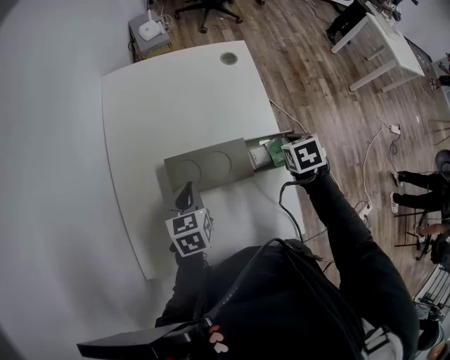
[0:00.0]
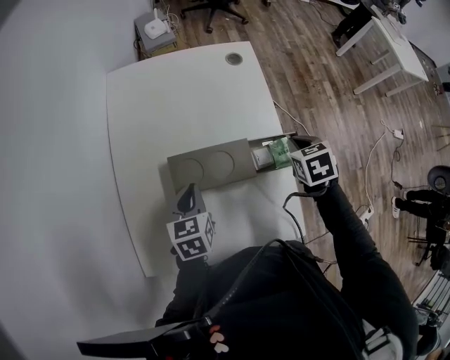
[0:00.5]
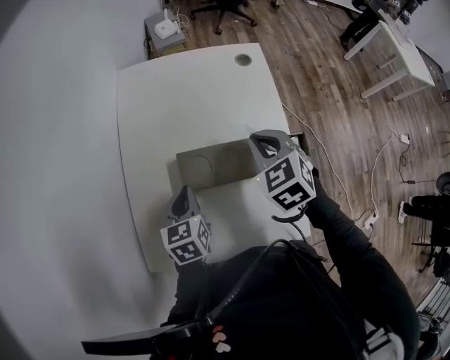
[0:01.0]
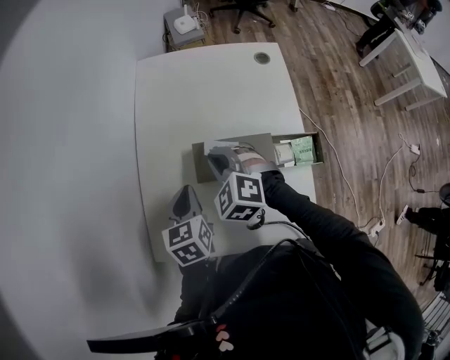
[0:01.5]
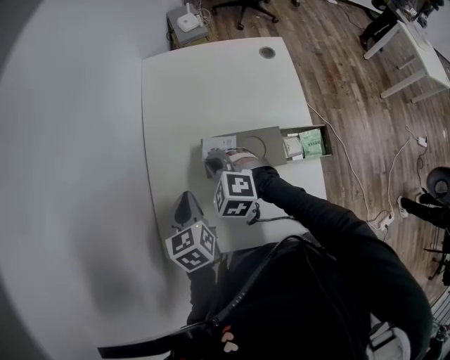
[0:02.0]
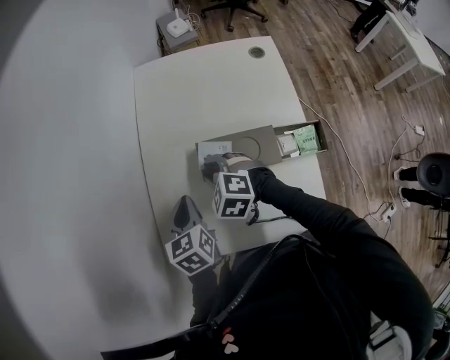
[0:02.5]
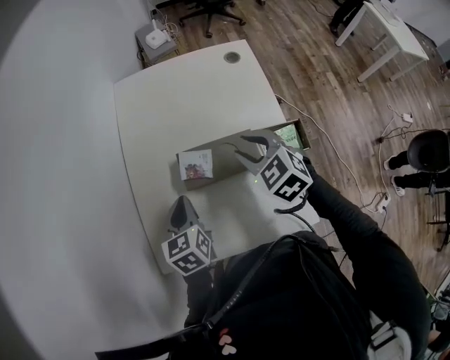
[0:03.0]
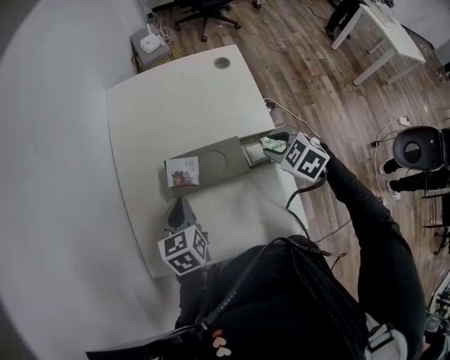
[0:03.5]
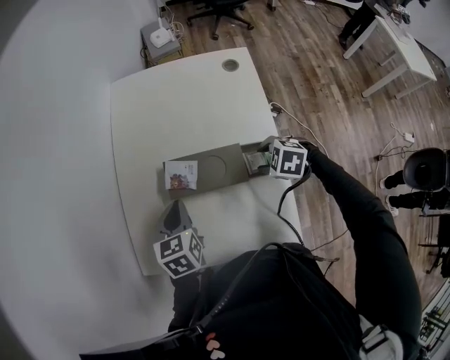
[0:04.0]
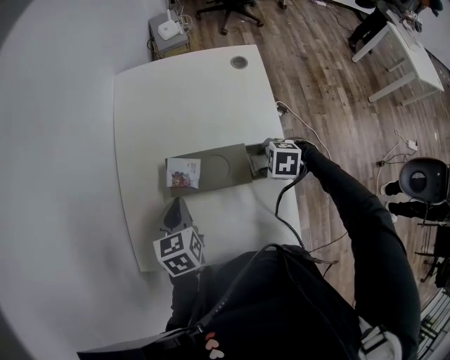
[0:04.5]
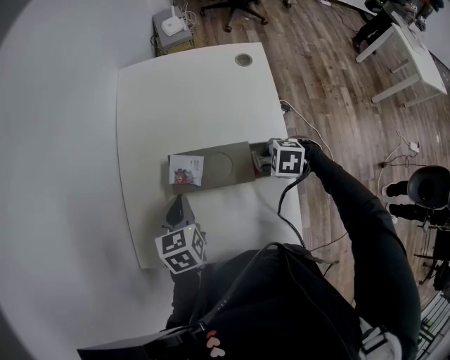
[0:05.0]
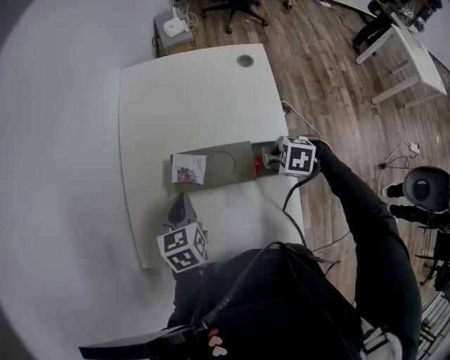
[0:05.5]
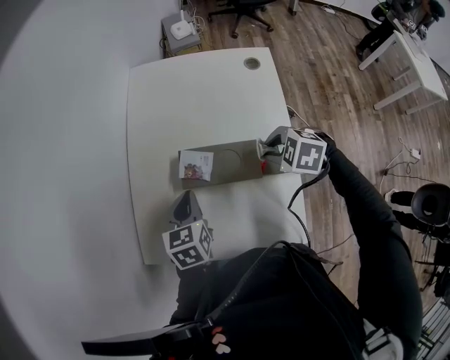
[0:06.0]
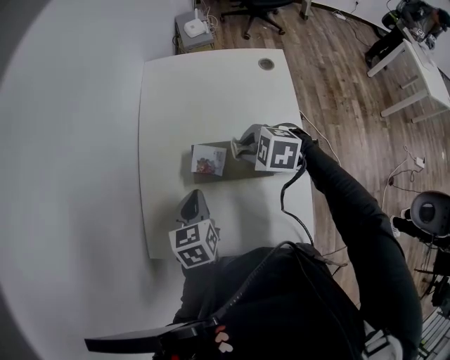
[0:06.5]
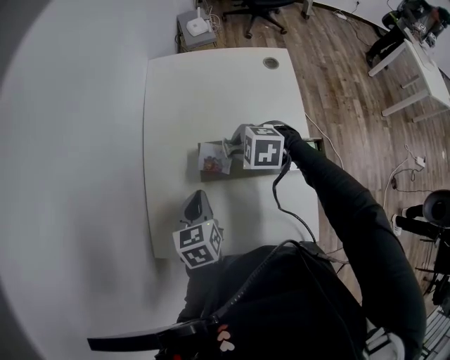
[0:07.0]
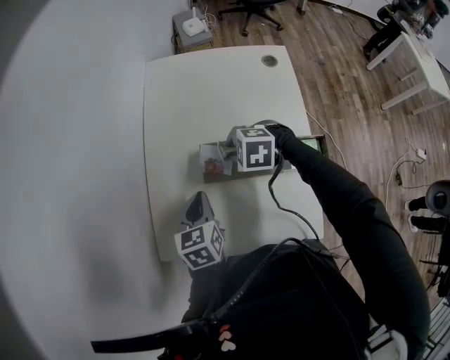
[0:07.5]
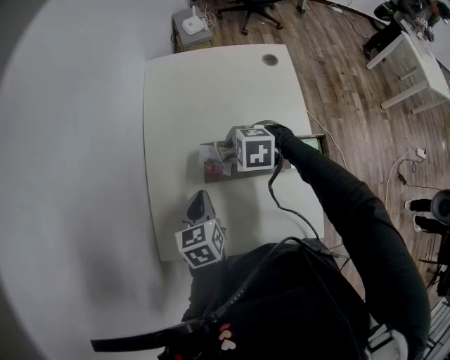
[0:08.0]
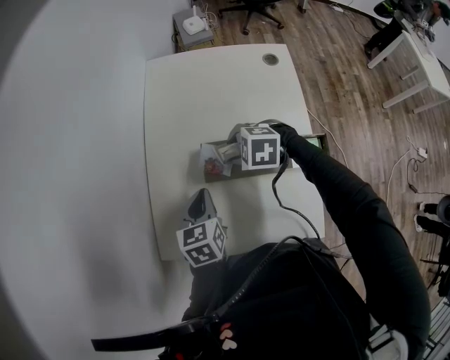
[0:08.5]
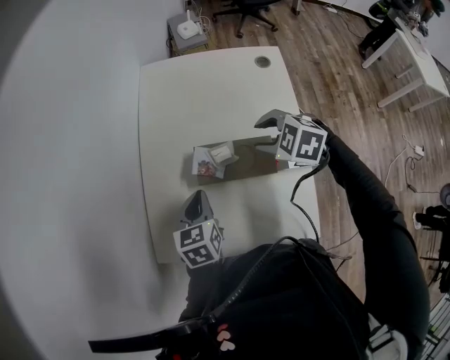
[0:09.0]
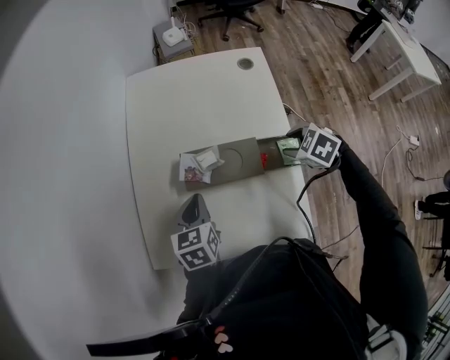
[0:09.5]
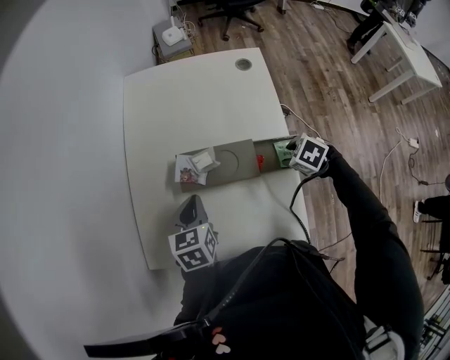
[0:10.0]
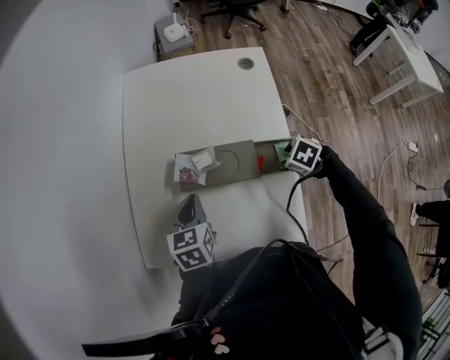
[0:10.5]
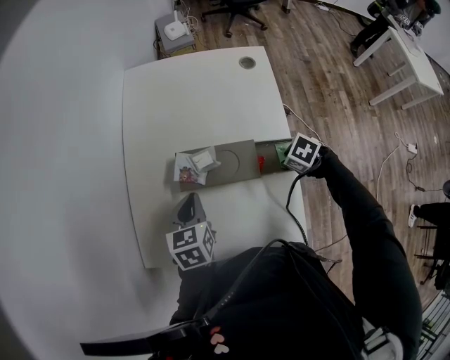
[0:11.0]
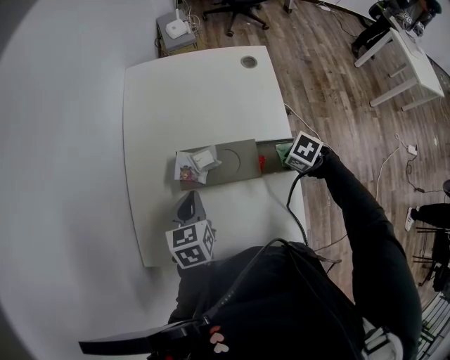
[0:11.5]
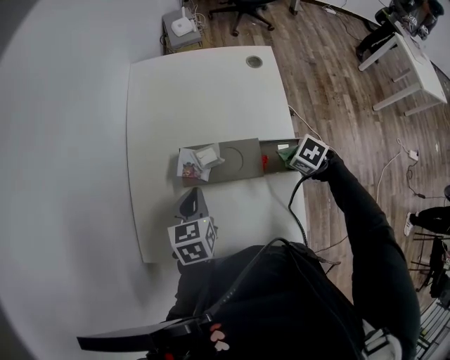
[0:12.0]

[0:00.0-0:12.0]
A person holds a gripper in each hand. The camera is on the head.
0:00.0 to 0:02.0: The right gripper reaches approximately 10 cm upward, then returns, and twists roughly 60 degrees counterclockwise, seen from behind; the left gripper changes place by about 15 cm.
0:02.0 to 0:04.0: The right gripper moves to the right, roughly 25 cm, rotates about 30 degrees, and opens; the left gripper shifts some 10 cm to the right.
0:04.0 to 0:06.0: The right gripper travels upward by about 5 cm, and closes its fingers.
0:06.0 to 0:08.0: The right gripper goes roughly 15 cm to the left and forward.
0:08.0 to 0:10.0: The right gripper shifts by approximately 25 cm, and turns by roughly 40 degrees.
0:10.0 to 0:12.0: The right gripper closes up.

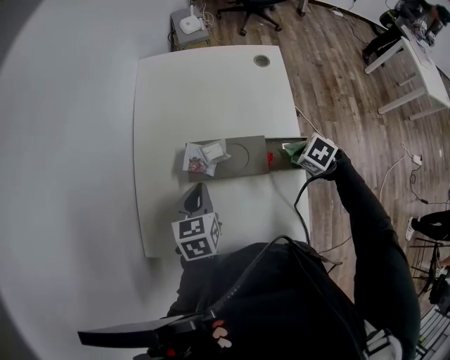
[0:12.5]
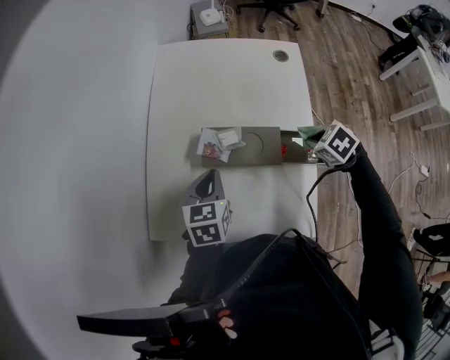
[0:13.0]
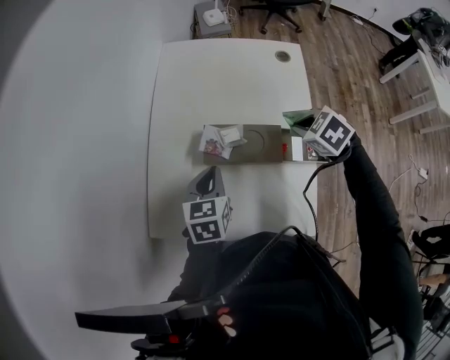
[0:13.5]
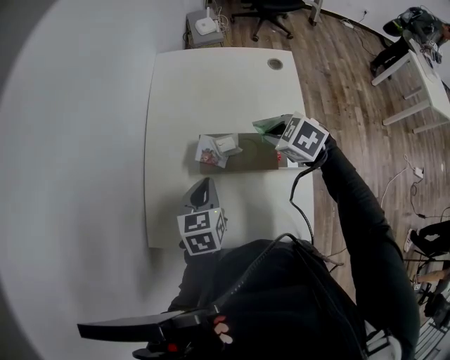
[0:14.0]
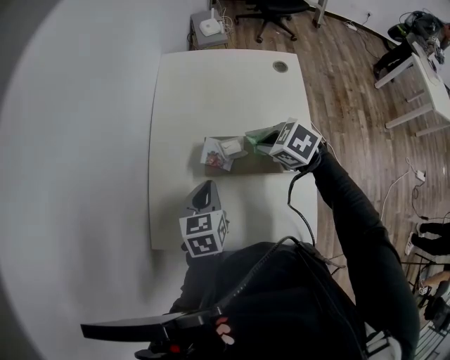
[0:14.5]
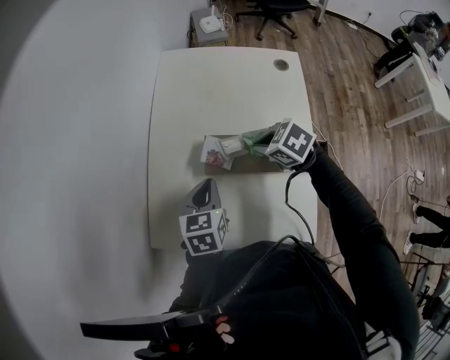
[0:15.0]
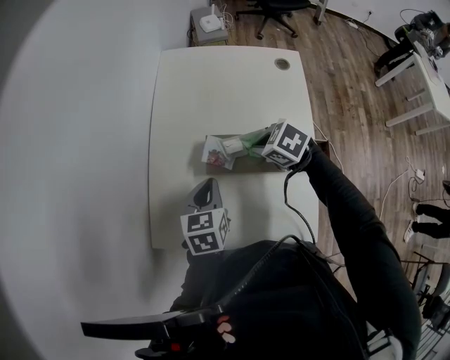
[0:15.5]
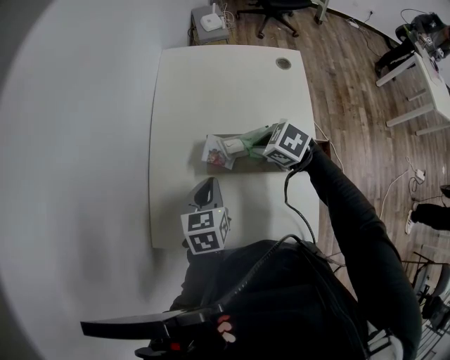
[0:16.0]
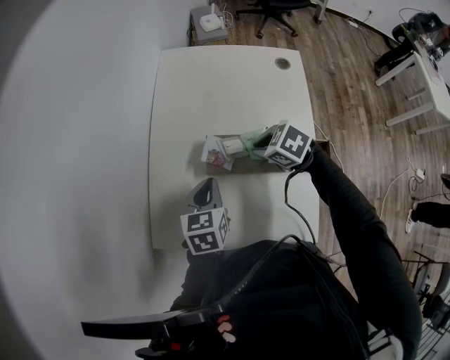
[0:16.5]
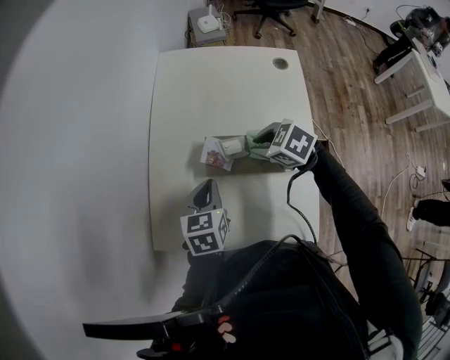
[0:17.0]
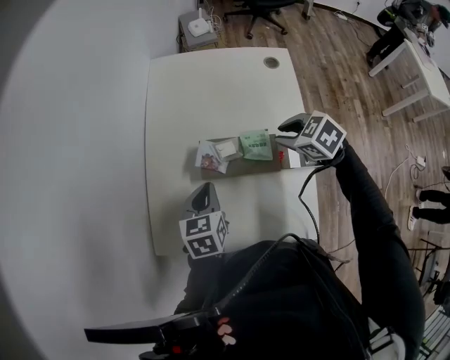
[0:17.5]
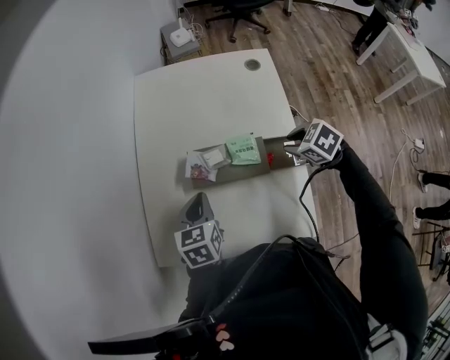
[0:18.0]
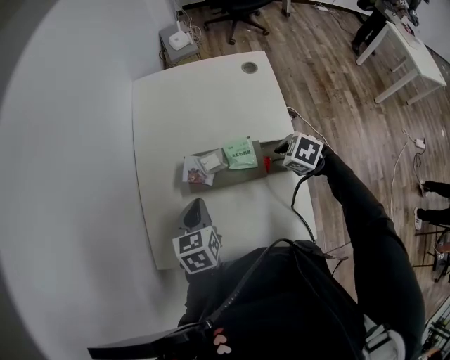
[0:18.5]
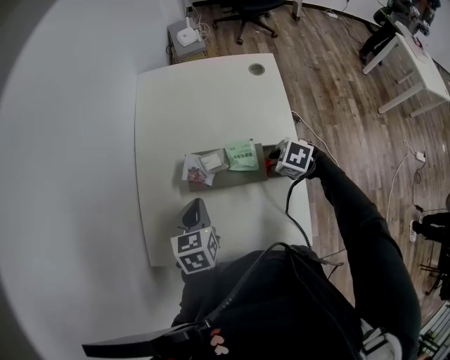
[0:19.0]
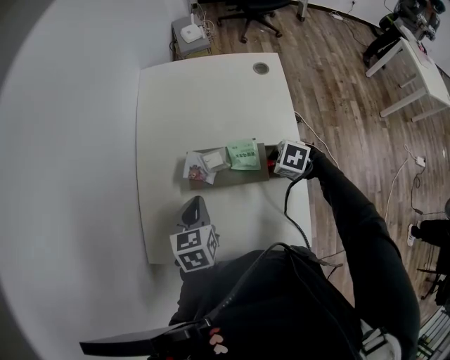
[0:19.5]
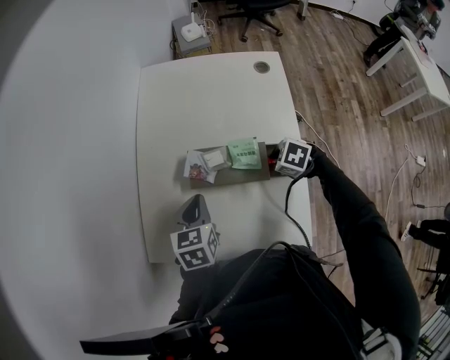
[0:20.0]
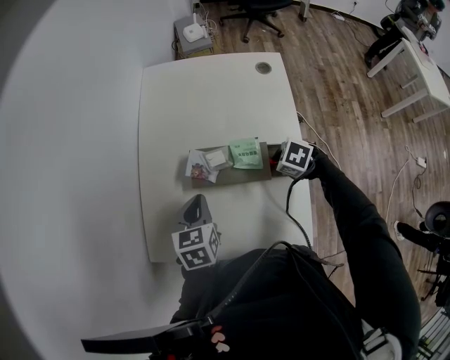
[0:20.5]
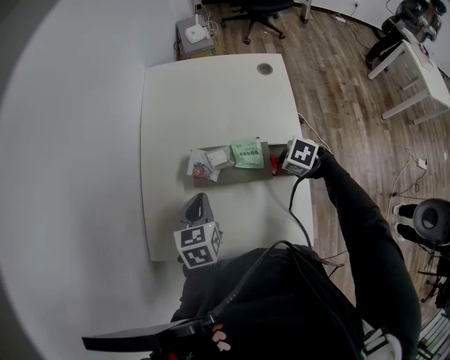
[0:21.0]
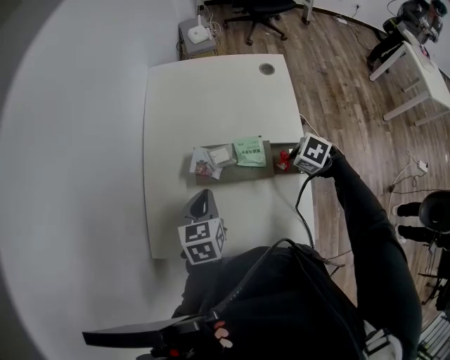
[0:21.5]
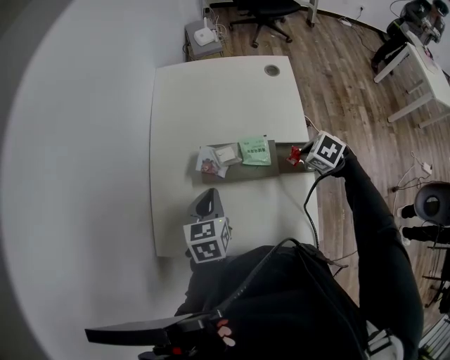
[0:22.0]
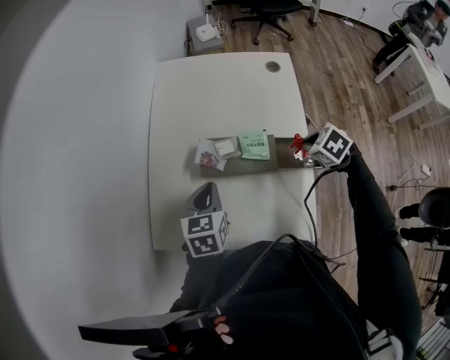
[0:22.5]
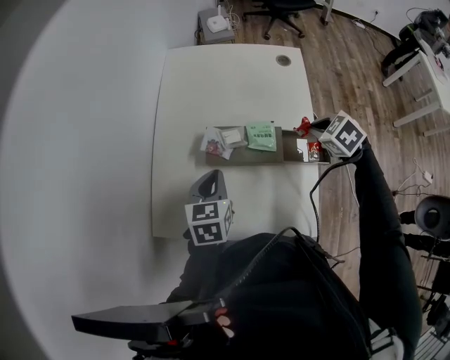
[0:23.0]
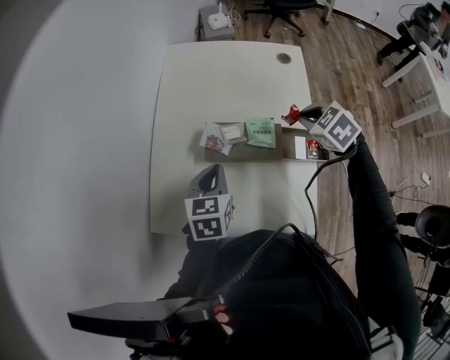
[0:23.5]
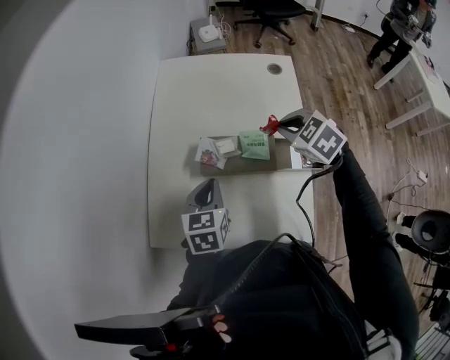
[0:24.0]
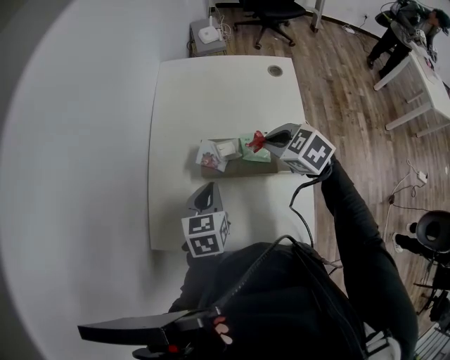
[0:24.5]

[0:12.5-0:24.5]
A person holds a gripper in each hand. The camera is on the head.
0:12.5 to 0:14.5: The right gripper moves approximately 20 cm, and rotates about 20 degrees.
0:14.5 to 0:16.5: The grippers move only a little.
0:16.5 to 0:18.5: The right gripper moves to the right and backward, approximately 15 cm.
0:18.5 to 0:20.5: The grippers make only small movements.
0:20.5 to 0:22.5: The right gripper shifts roughly 10 cm upward.
0:22.5 to 0:24.5: The right gripper goes roughly 15 cm to the left and upward, and changes its angle by some 20 degrees.

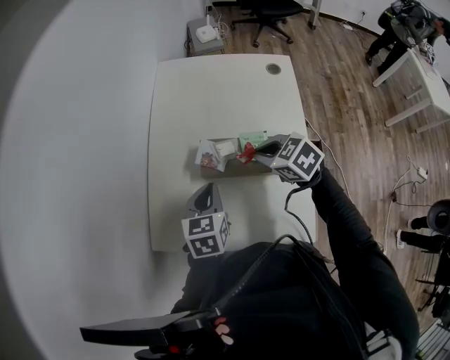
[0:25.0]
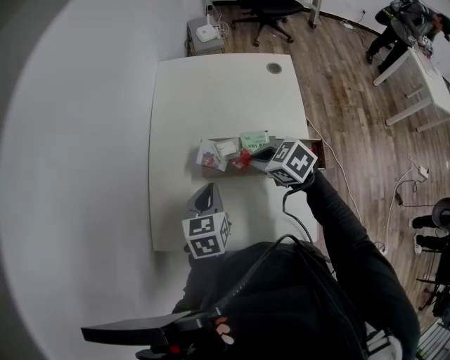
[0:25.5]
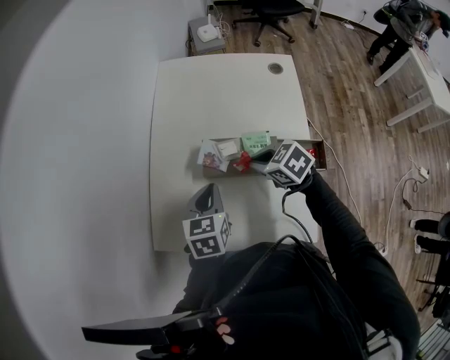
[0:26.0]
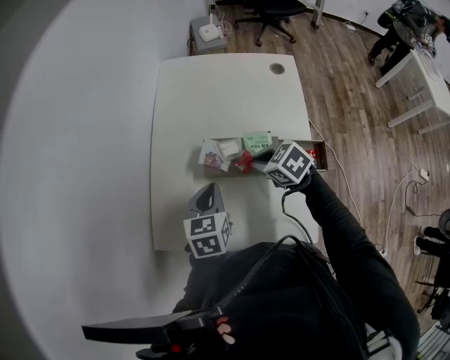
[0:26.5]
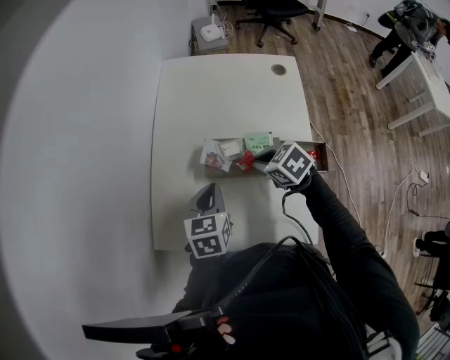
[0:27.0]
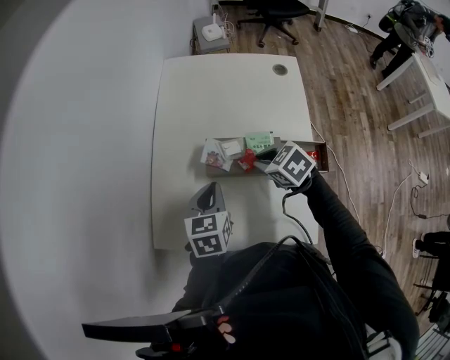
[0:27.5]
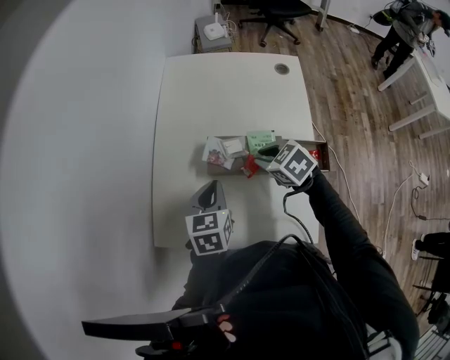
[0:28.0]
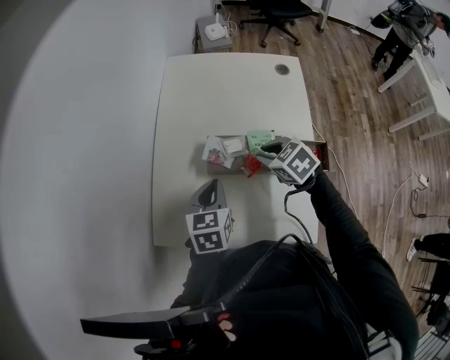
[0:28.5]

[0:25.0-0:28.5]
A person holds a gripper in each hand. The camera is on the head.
0:25.0 to 0:28.5: There are only small adjustments of the grippers.
